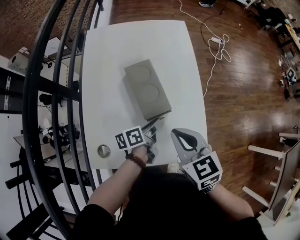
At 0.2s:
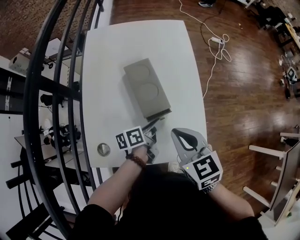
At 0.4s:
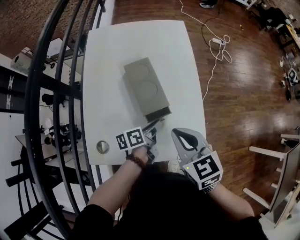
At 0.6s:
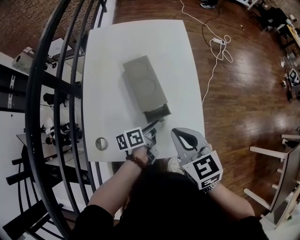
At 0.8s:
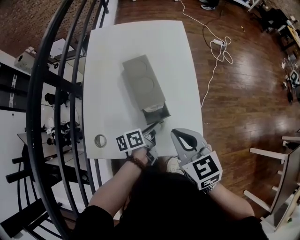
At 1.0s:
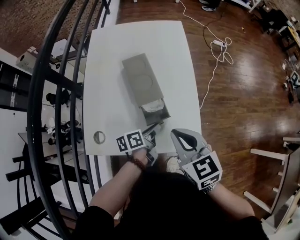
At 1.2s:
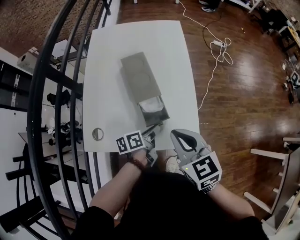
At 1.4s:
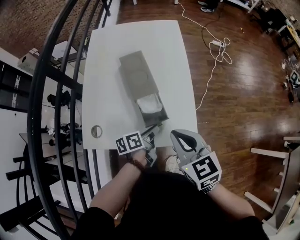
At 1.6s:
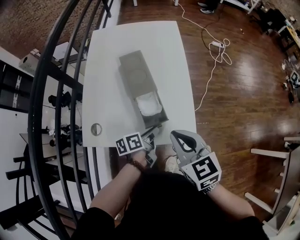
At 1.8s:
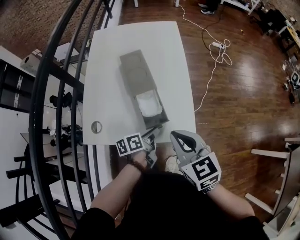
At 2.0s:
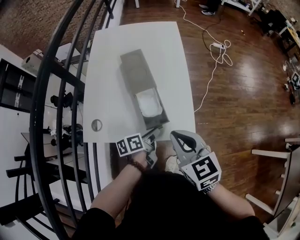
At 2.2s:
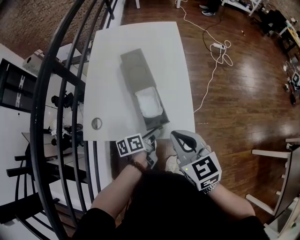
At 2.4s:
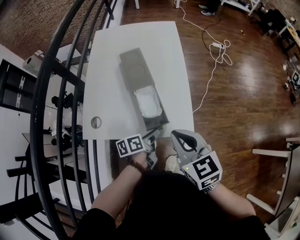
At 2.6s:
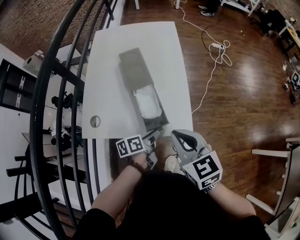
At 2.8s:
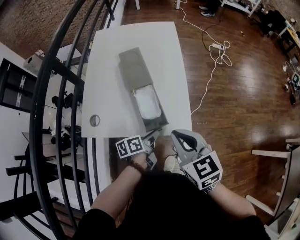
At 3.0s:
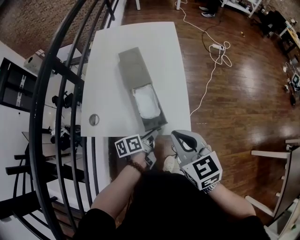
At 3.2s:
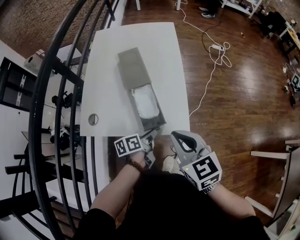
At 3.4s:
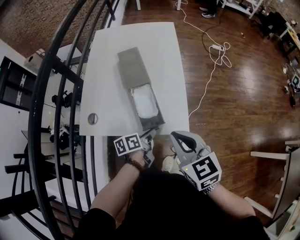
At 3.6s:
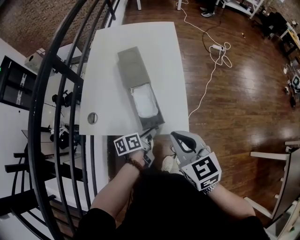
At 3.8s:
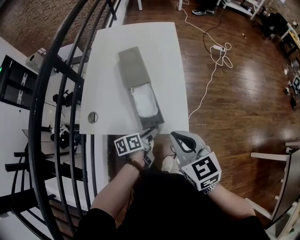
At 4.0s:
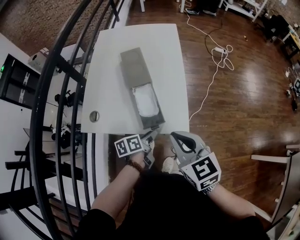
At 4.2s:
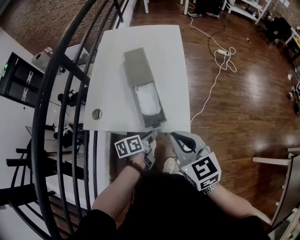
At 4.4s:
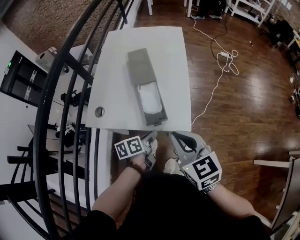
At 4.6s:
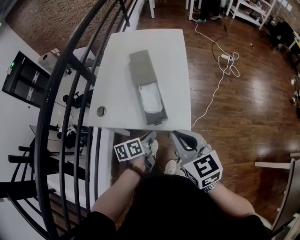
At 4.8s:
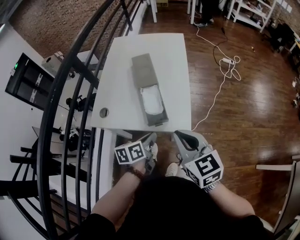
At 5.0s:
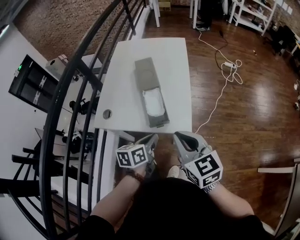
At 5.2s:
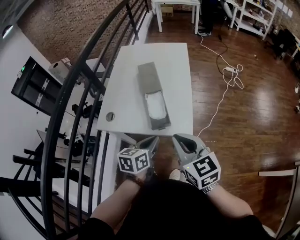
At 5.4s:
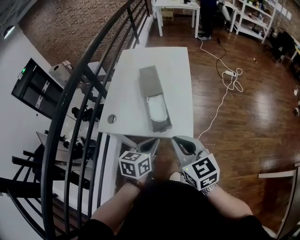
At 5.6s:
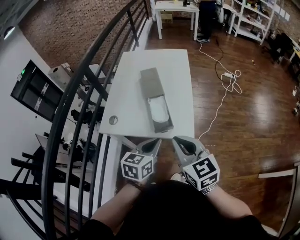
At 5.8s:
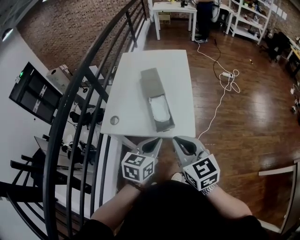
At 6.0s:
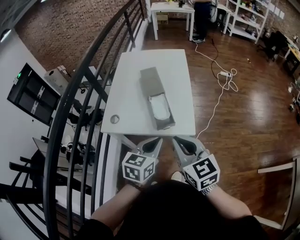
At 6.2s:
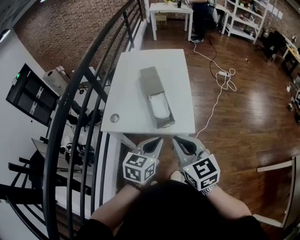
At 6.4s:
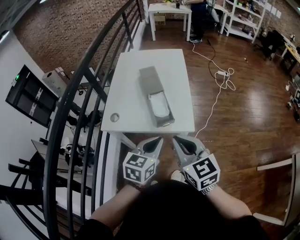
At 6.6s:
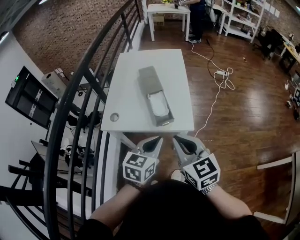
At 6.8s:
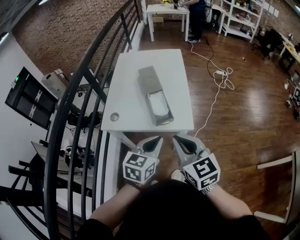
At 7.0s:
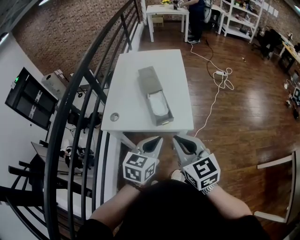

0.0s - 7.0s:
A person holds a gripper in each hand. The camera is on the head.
0.0s - 1.4s: The left gripper is displaced backward by approximately 10 cm. Meanwhile the right gripper heads backward and to the right, covering about 10 cm.
1.4s - 2.8s: The right gripper changes place by approximately 5 cm. Meanwhile the left gripper heads backward, covering roughly 5 cm.
2.8s - 4.2s: The grippers stay close to where they were, moving slightly.
4.2s - 5.6s: The left gripper moves upward, some 15 cm, twists about 40 degrees clockwise, seen from behind, and closes.
5.6s - 7.0s: The right gripper ends up approximately 5 cm from where it was; the left gripper changes place by roughly 5 cm.

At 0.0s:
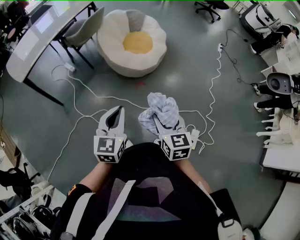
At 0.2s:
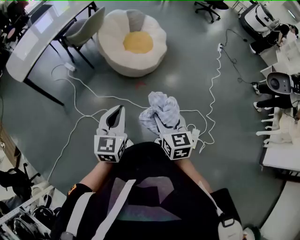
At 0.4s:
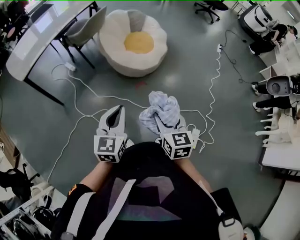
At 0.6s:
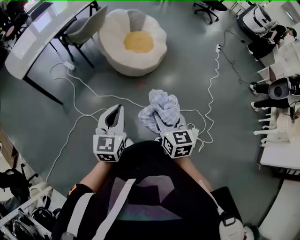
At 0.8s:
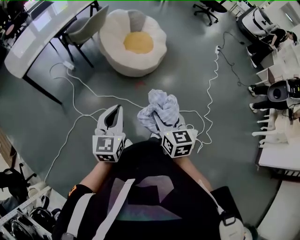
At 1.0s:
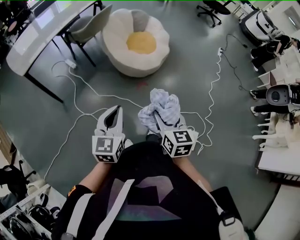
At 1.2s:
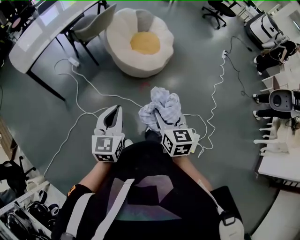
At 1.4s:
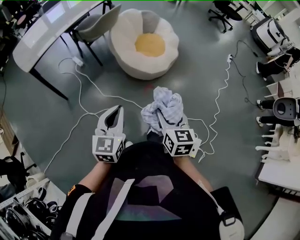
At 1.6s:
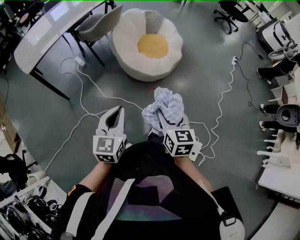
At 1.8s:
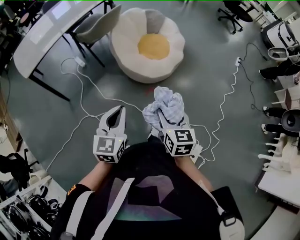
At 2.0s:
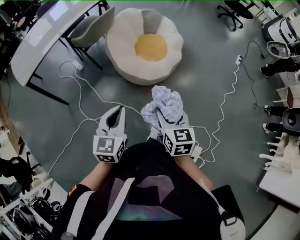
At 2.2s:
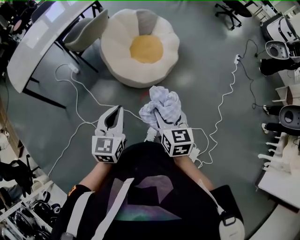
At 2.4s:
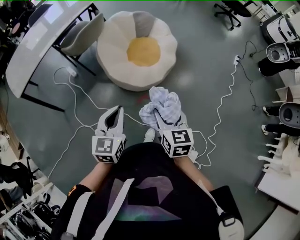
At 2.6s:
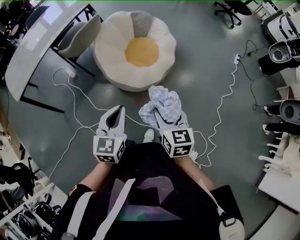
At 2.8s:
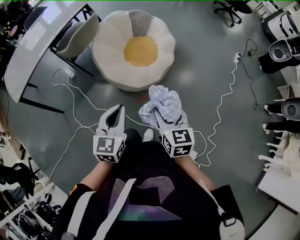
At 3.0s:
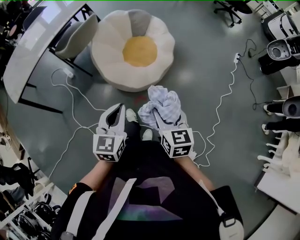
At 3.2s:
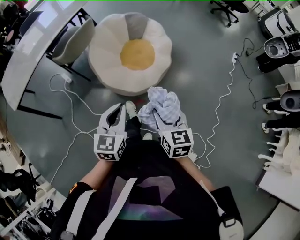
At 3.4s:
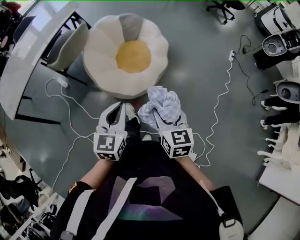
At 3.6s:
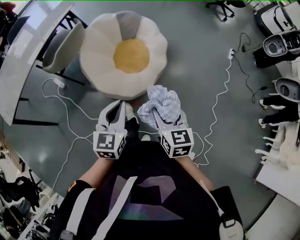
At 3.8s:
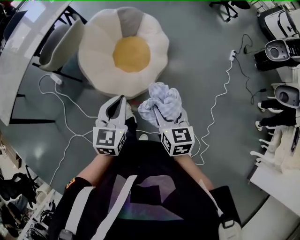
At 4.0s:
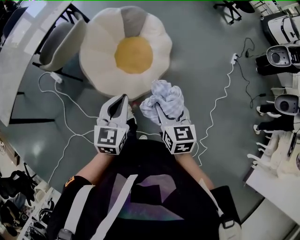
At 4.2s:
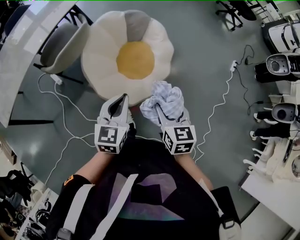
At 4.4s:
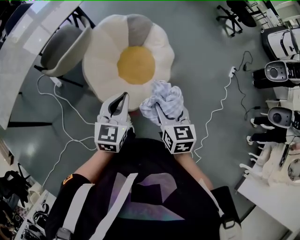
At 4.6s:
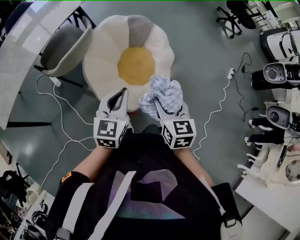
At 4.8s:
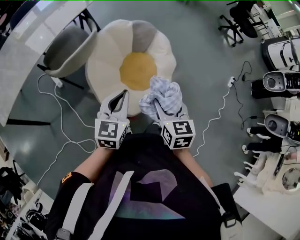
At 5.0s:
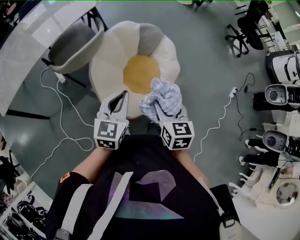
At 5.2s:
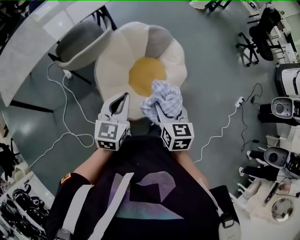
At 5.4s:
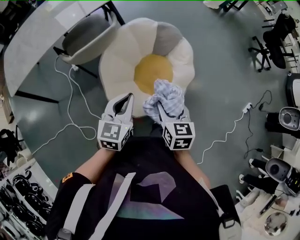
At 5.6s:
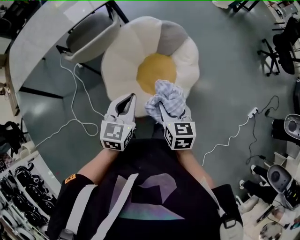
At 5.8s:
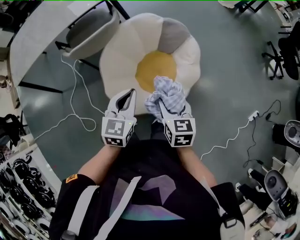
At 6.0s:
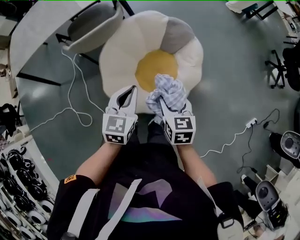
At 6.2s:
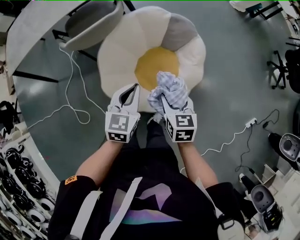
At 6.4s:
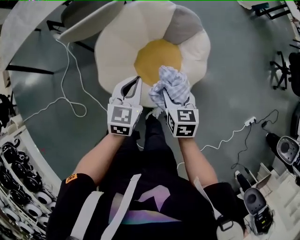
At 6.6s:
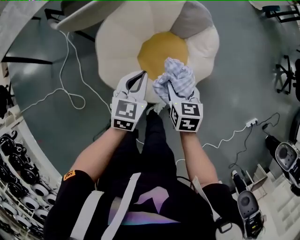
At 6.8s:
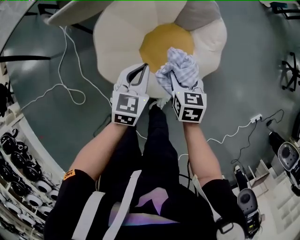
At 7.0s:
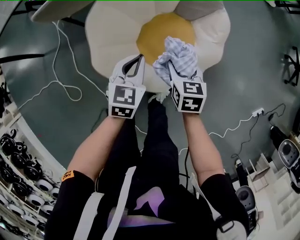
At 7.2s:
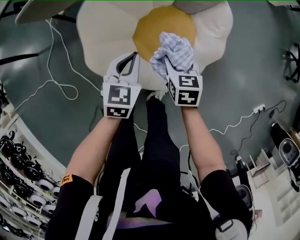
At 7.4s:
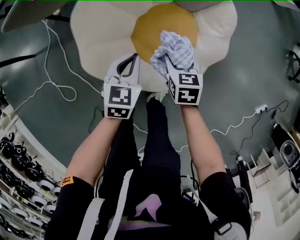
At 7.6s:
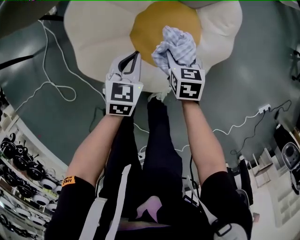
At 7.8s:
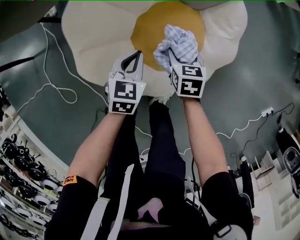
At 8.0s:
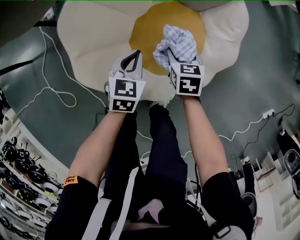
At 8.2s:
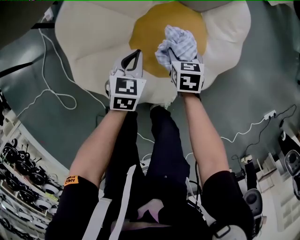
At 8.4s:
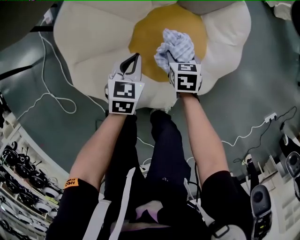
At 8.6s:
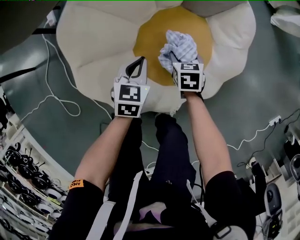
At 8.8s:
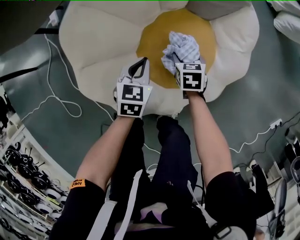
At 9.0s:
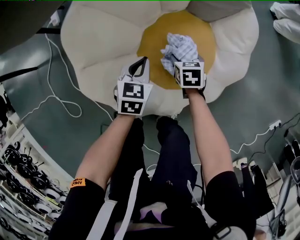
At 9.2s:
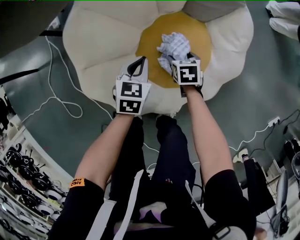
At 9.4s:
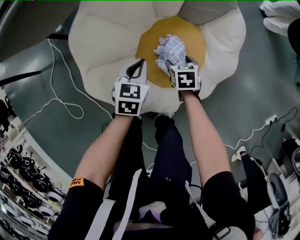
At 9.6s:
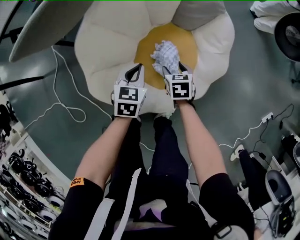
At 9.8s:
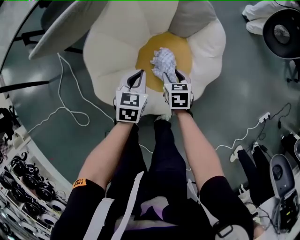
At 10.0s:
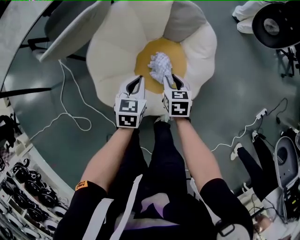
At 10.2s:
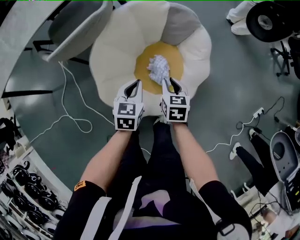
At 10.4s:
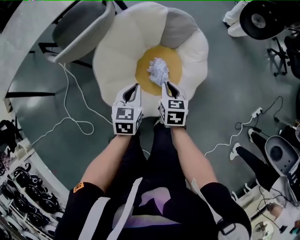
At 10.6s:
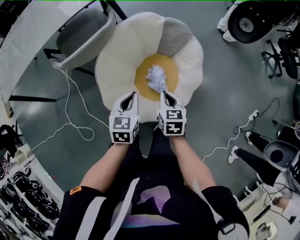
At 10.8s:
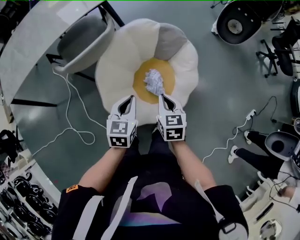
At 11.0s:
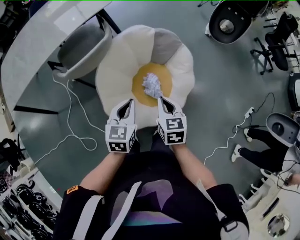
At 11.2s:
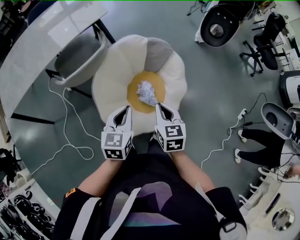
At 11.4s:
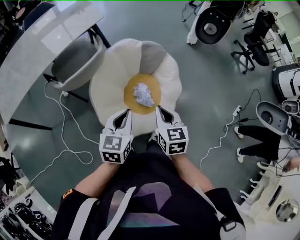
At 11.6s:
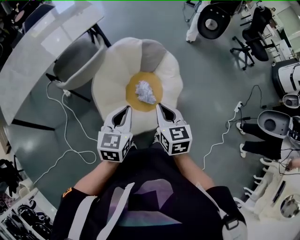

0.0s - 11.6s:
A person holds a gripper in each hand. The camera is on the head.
0.0s - 1.4s: The left gripper goes approximately 5 cm to the left; the right gripper shifts some 5 cm forward.
1.4s - 2.8s: The two grippers go approximately 30 cm forward and to the right.
2.8s - 4.4s: Both grippers travel together forward, approximately 30 cm.
4.4s - 5.8s: The right gripper ends up roughly 20 cm from where it was, and rotates about 20 degrees. Meanwhile the left gripper changes place by some 15 cm, and changes its angle by some 20 degrees.
5.8s - 7.2s: Both grippers travel together downward, some 30 cm.
7.2s - 8.8s: The grippers both shift downward by some 20 cm.
8.8s - 10.2s: Both grippers move upward, roughly 30 cm. The right gripper closes its fingers.
10.2s - 11.6s: Both grippers move upward and backward, approximately 30 cm. The left gripper rotates about 20 degrees.

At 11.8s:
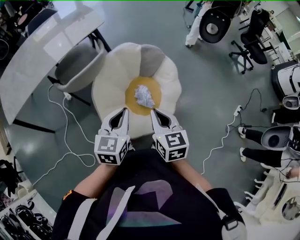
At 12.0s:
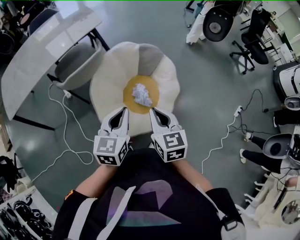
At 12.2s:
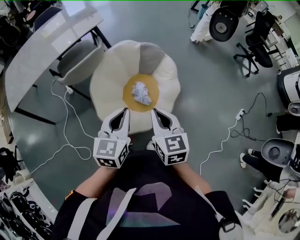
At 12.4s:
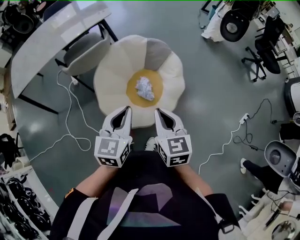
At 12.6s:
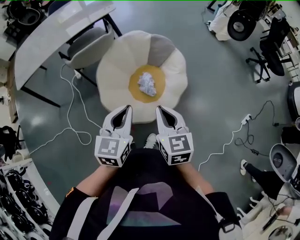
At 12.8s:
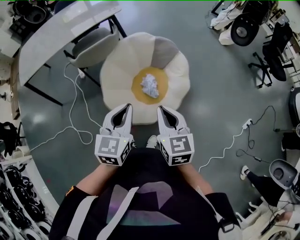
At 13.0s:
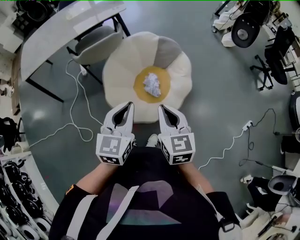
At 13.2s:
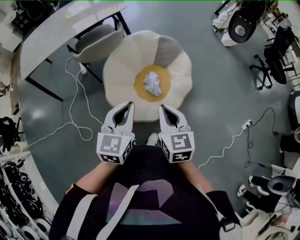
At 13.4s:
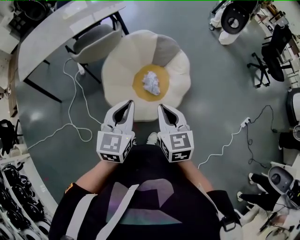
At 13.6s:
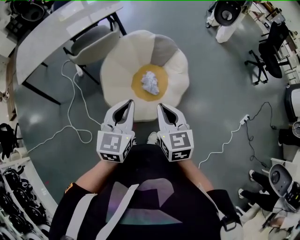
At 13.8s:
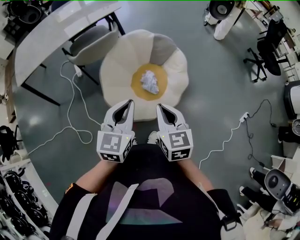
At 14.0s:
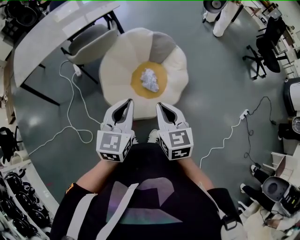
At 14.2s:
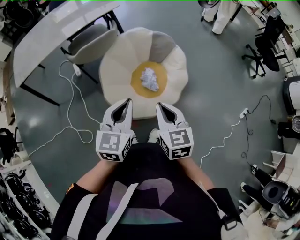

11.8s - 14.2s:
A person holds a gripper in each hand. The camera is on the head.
11.8s - 13.0s: Both grippers travel together backward and to the right, roughly 15 cm.
13.0s - 14.2s: The right gripper shifts by some 5 cm.

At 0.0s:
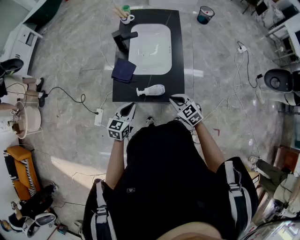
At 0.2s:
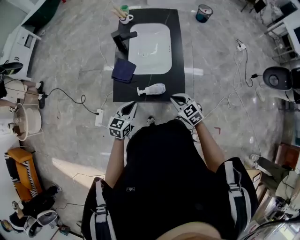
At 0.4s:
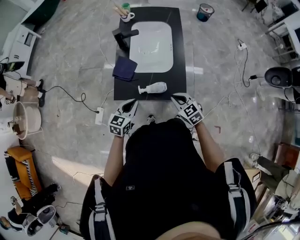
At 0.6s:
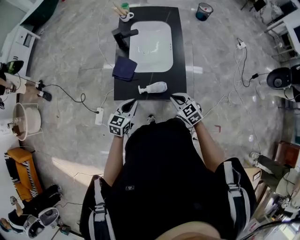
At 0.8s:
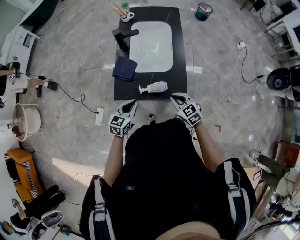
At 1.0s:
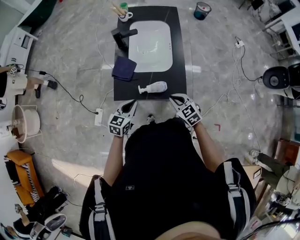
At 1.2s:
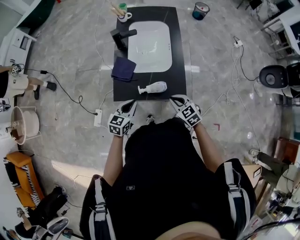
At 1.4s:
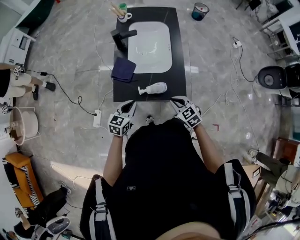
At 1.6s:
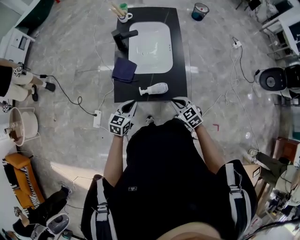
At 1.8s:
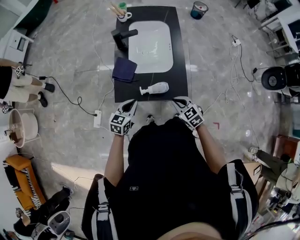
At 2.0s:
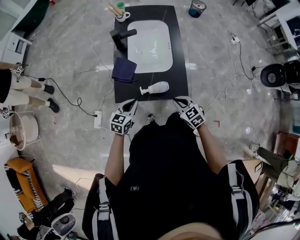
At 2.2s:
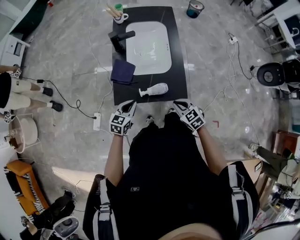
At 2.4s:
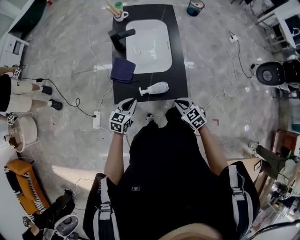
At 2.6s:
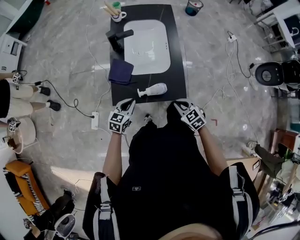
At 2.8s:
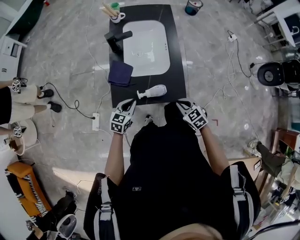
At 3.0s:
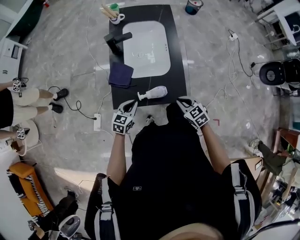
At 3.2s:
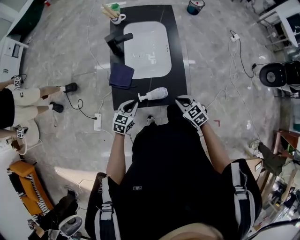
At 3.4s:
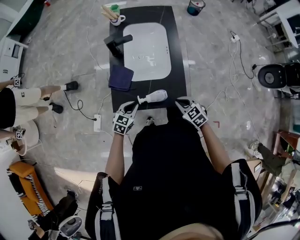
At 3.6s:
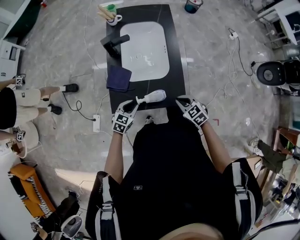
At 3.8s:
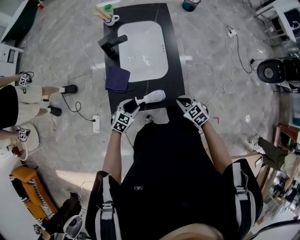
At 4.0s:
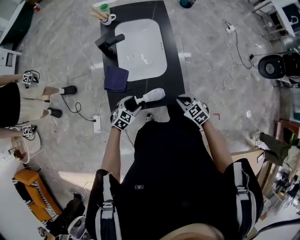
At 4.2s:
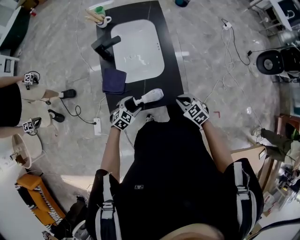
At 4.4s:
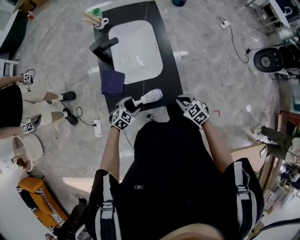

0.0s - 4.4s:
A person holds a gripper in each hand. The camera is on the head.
0.0s - 1.4s: There are only small adjustments of the grippers.
1.4s - 3.0s: The left gripper ends up approximately 5 cm from where it was.
3.0s - 4.4s: The left gripper is displaced downward by about 10 cm, turns by approximately 40 degrees, and opens.
